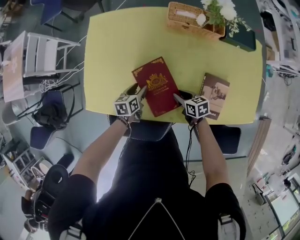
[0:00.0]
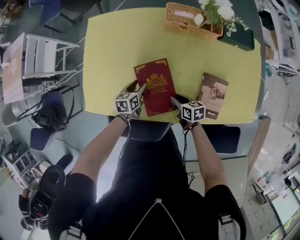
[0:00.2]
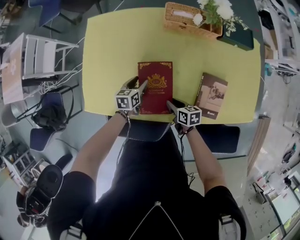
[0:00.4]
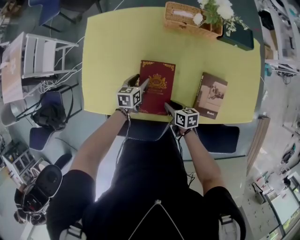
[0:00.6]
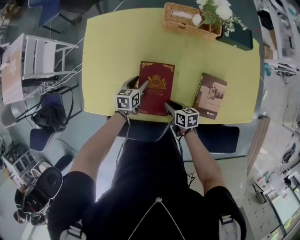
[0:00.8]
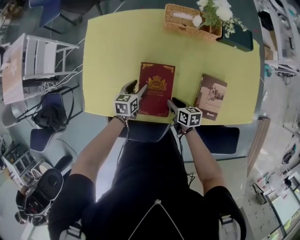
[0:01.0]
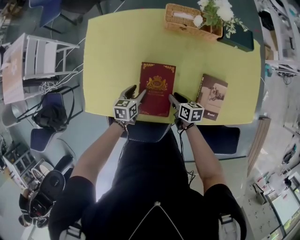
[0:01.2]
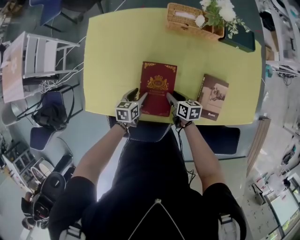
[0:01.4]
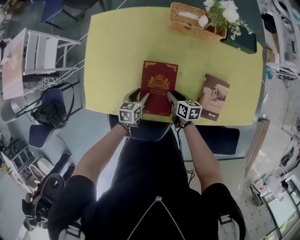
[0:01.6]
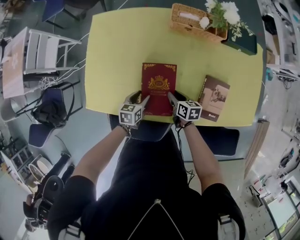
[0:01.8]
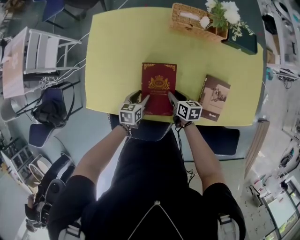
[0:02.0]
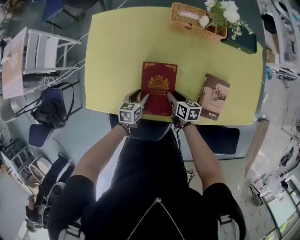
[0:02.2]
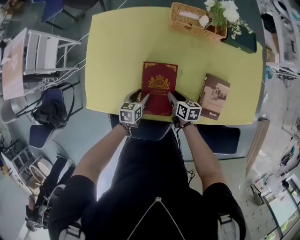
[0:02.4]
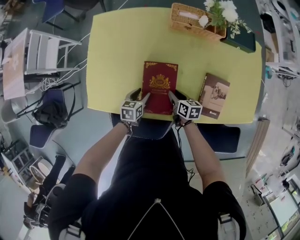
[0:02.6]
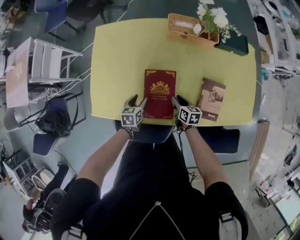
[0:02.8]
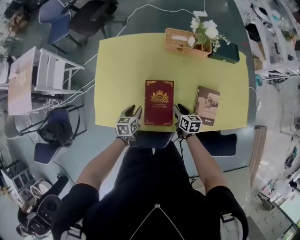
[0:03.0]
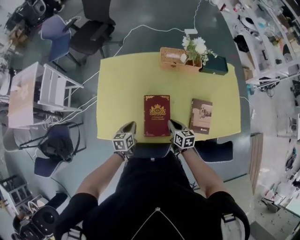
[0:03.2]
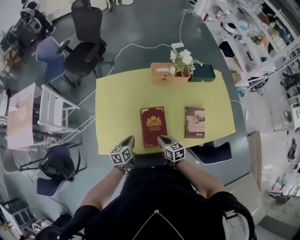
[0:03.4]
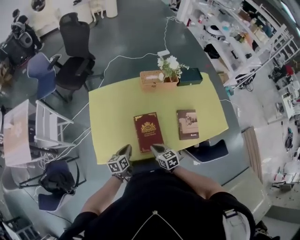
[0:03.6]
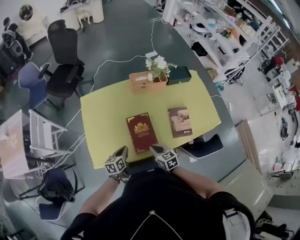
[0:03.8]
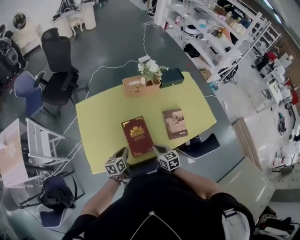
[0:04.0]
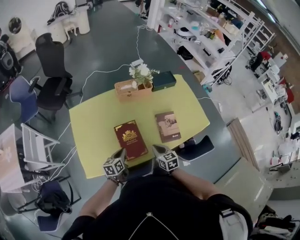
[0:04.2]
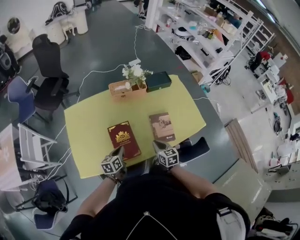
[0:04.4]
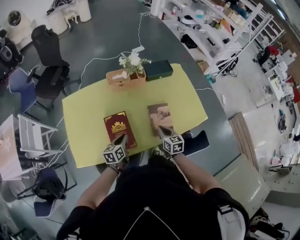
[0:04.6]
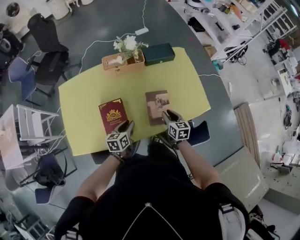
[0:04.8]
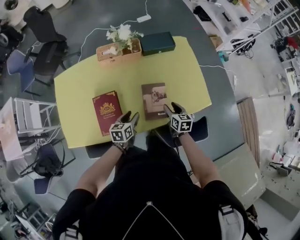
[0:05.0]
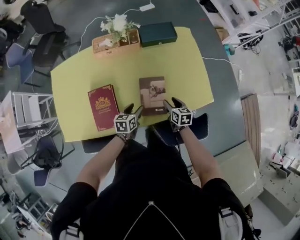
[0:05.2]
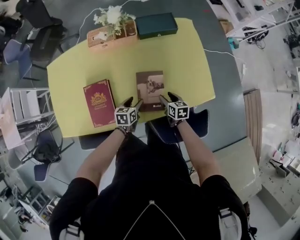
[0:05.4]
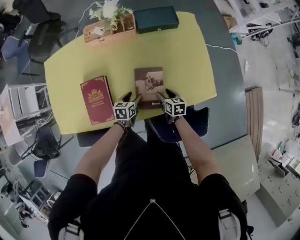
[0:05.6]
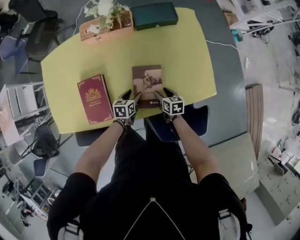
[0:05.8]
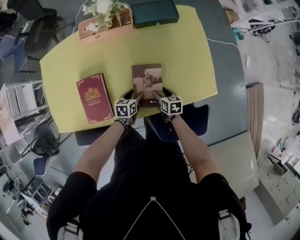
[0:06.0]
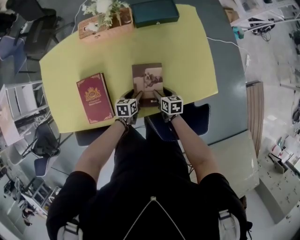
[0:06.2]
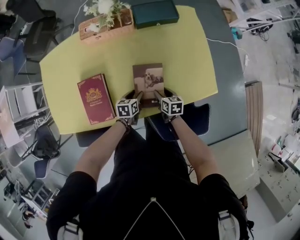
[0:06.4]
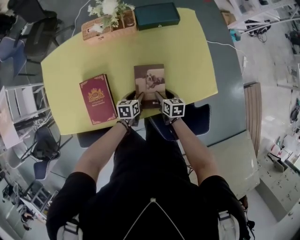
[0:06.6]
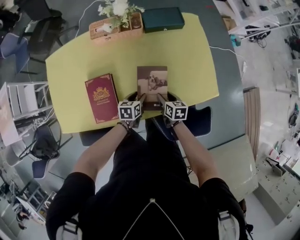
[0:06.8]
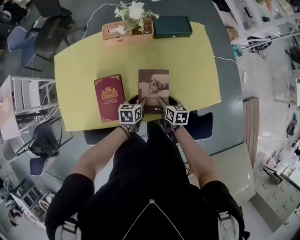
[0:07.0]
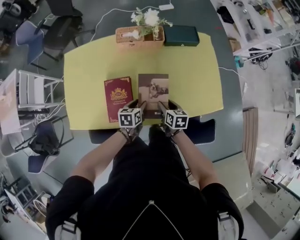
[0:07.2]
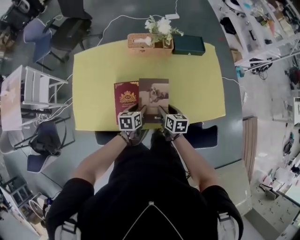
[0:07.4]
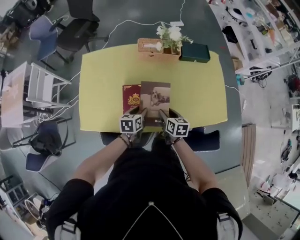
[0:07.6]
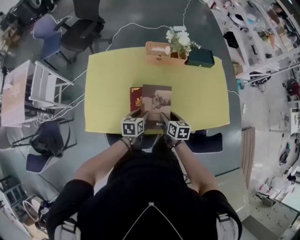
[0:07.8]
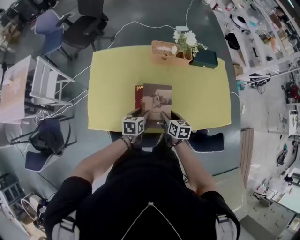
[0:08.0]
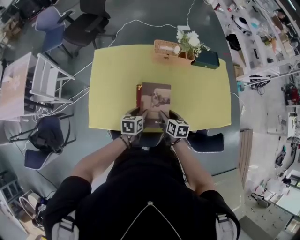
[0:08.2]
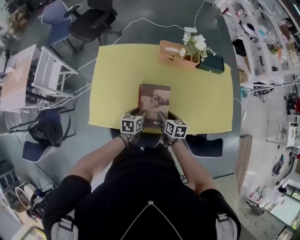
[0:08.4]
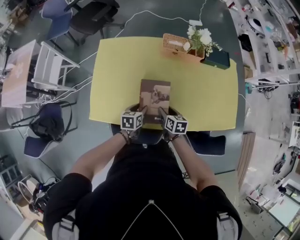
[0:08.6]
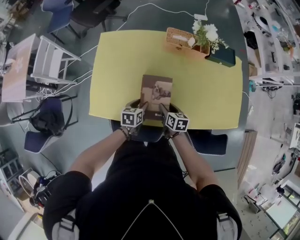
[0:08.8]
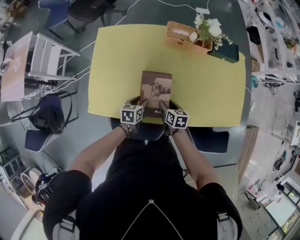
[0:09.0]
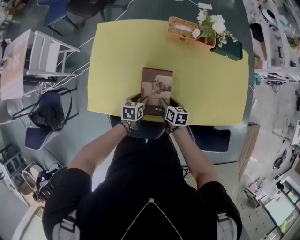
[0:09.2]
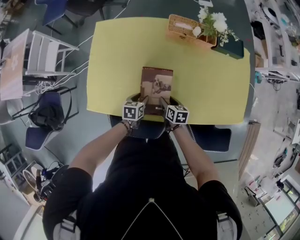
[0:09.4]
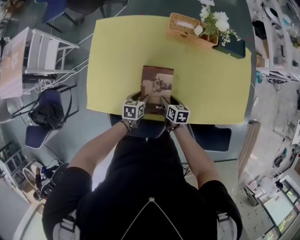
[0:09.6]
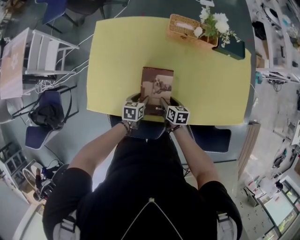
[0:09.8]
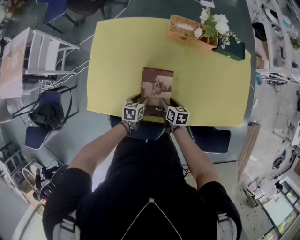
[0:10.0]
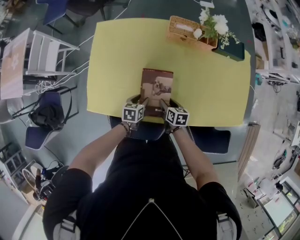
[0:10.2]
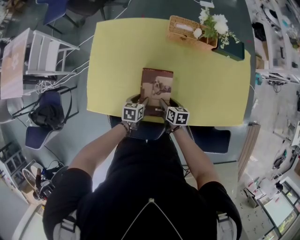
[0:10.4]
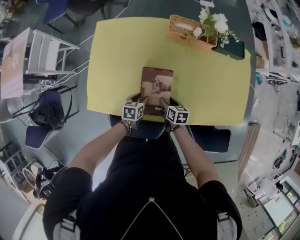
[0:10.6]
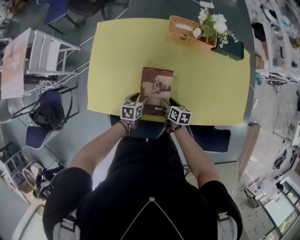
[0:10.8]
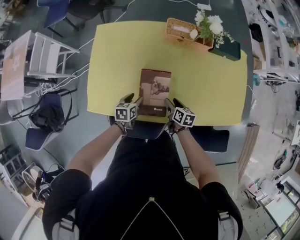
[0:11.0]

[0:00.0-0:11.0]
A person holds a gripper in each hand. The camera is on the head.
0:00.0 to 0:01.6: The grippers make only small movements.
0:01.6 to 0:03.2: The left gripper shifts approximately 15 cm upward and to the left, and closes. The right gripper goes about 10 cm upward, and closes its fingers.
0:03.2 to 0:04.8: Both grippers move to the right, roughly 25 cm. The left gripper opens, while the right gripper swivels about 20 degrees, and opens its fingers.
0:04.8 to 0:06.2: The left gripper is displaced downward and to the right by some 25 cm; the right gripper goes roughly 20 cm downward, turns by some 20 degrees, and opens its fingers.
0:06.2 to 0:07.8: The two grippers go about 30 cm to the left and upward.
0:07.8 to 0:09.4: The grippers both shift downward and to the left by roughly 15 cm.
0:09.4 to 0:11.0: The grippers make only small movements.

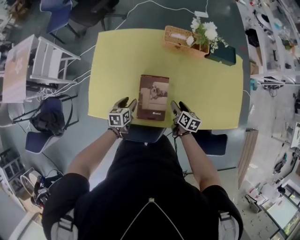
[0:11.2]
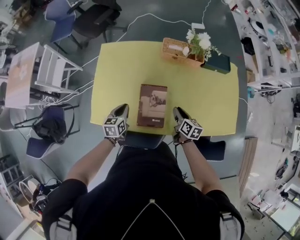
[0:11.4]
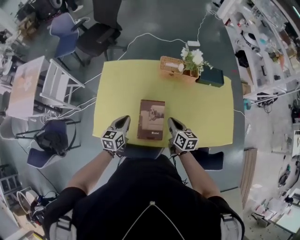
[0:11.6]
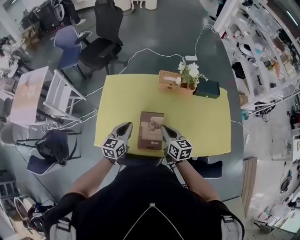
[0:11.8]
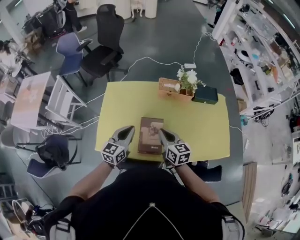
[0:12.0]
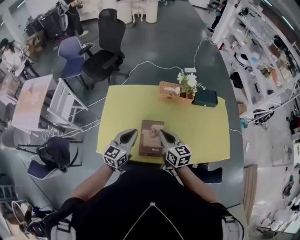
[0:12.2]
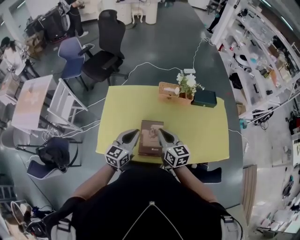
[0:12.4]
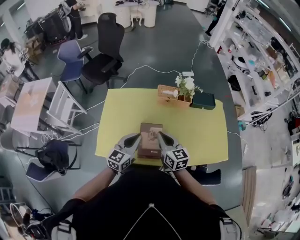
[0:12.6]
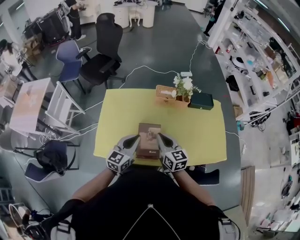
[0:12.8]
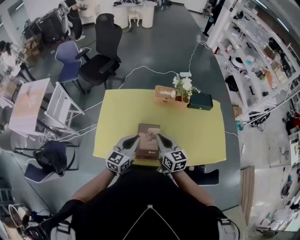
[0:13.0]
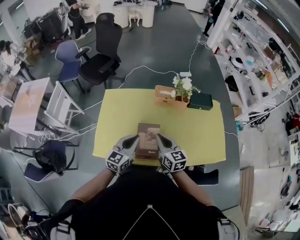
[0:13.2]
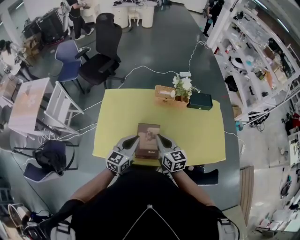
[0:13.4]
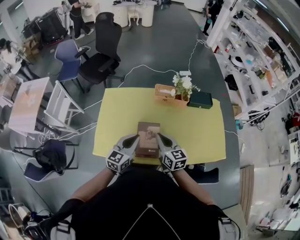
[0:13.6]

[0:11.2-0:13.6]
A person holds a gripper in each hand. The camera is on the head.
0:11.2 to 0:12.4: The two grippers go about 30 cm upward. The right gripper changes its angle by about 40 degrees, and closes. The left gripper points its fingers some 40 degrees further upward, and closes its fingers.
0:12.4 to 0:13.6: The grippers stay close to where they were, moving slightly.

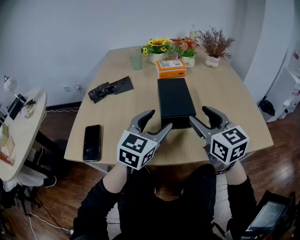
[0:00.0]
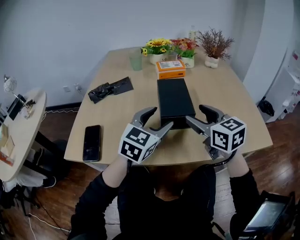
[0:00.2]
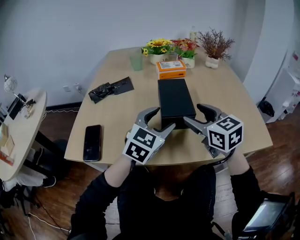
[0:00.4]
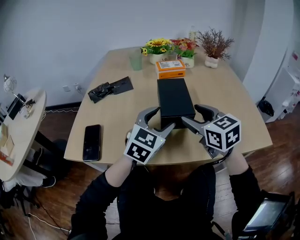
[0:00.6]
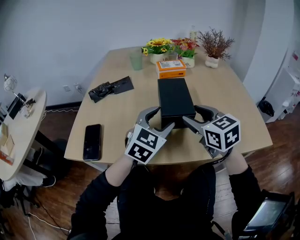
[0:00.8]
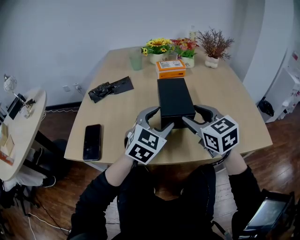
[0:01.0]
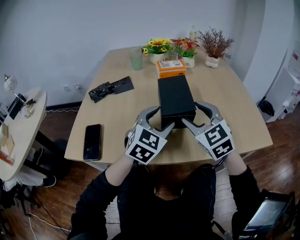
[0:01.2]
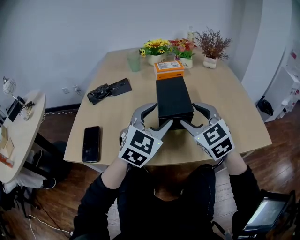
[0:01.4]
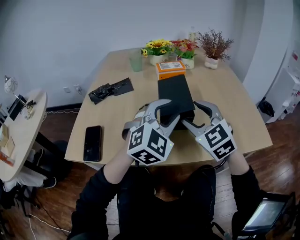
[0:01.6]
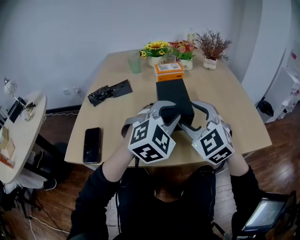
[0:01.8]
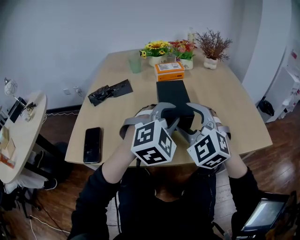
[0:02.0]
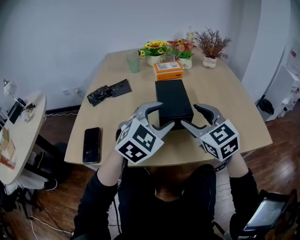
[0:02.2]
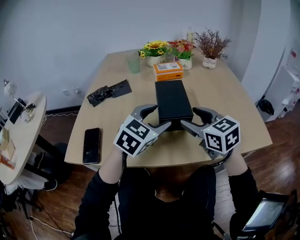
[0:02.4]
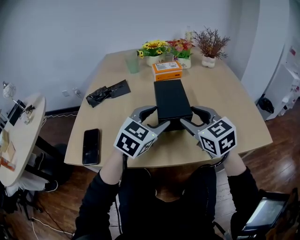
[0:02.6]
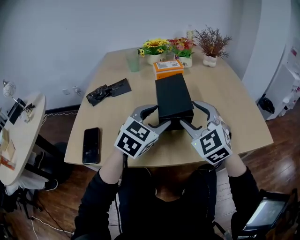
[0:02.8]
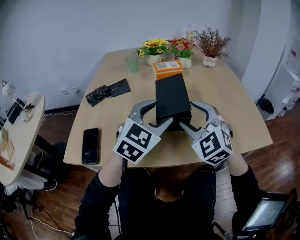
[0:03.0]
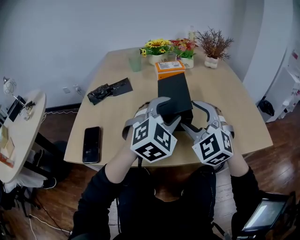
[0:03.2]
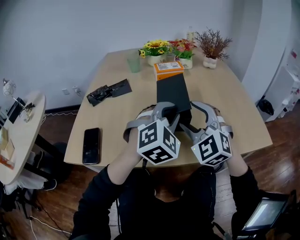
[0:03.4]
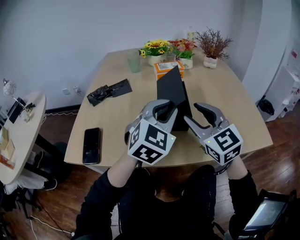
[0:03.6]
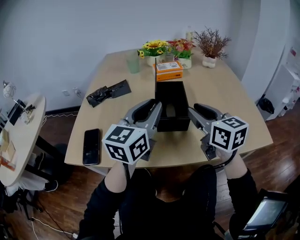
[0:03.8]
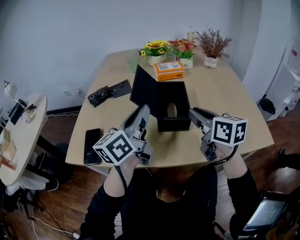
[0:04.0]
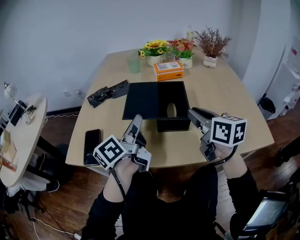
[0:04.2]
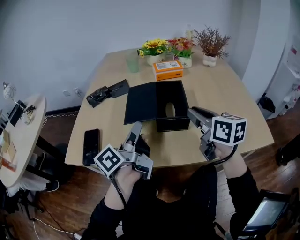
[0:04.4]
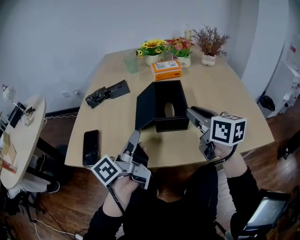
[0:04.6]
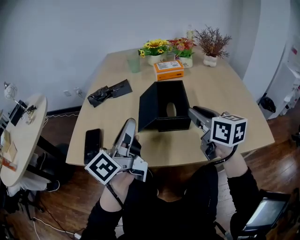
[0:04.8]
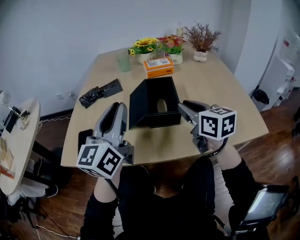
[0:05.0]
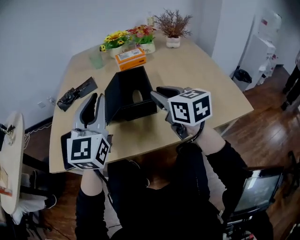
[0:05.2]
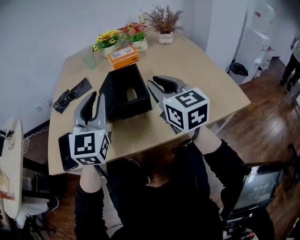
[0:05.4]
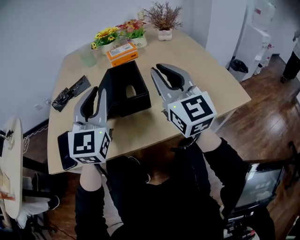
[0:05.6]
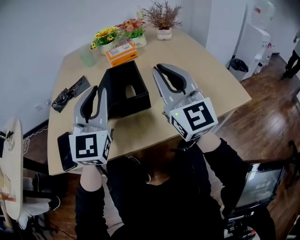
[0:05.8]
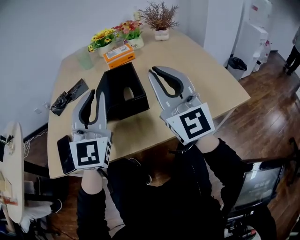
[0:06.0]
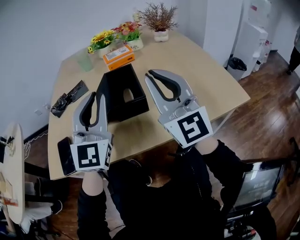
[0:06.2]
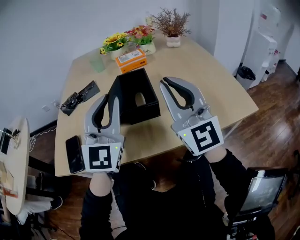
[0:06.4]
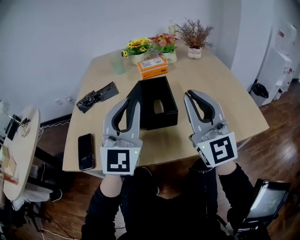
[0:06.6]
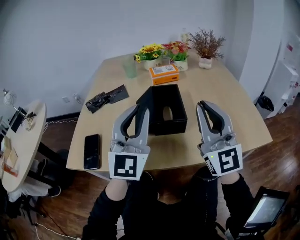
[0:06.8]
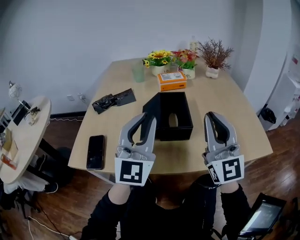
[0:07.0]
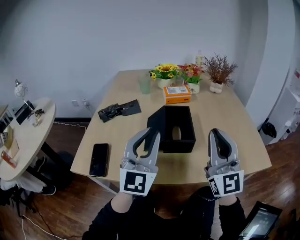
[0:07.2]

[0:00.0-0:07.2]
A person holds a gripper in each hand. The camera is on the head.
0:00.0 to 0:01.4: The right gripper turns by some 30 degrees.
0:01.4 to 0:02.8: The left gripper closes, then opens again.
0:02.8 to 0:04.4: The right gripper rolls clockwise, seen from behind, by some 60 degrees, and closes up, while the left gripper moves to the left, approximately 10 cm, rolls counterclockwise, seen from behind, by about 90 degrees, and closes up.
0:04.4 to 0:05.8: The left gripper is displaced upward and to the right by about 10 cm, and twists approximately 90 degrees clockwise, seen from behind; the right gripper goes some 10 cm upward, and tips its fingers upward by about 30 degrees.
0:05.8 to 0:07.2: The grippers make only small movements.

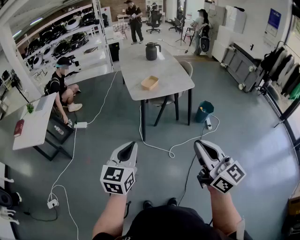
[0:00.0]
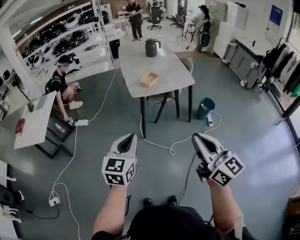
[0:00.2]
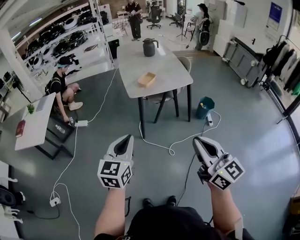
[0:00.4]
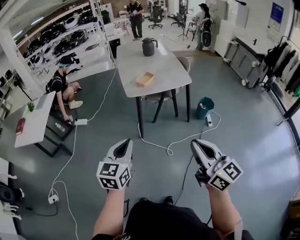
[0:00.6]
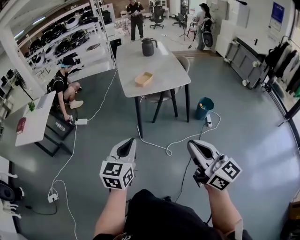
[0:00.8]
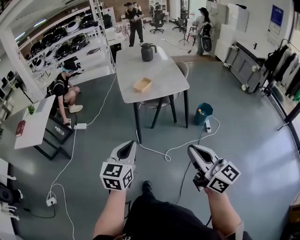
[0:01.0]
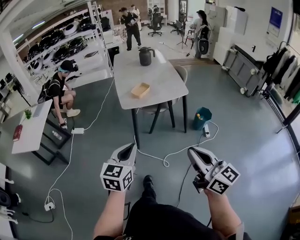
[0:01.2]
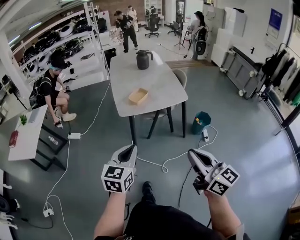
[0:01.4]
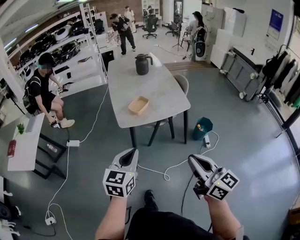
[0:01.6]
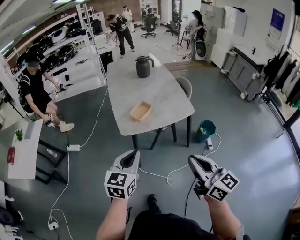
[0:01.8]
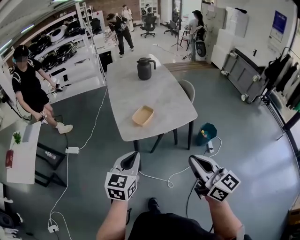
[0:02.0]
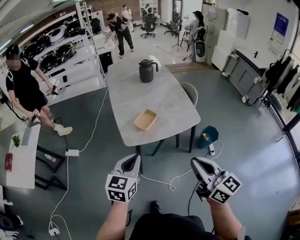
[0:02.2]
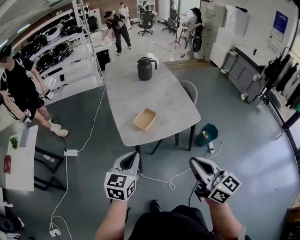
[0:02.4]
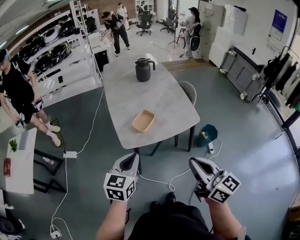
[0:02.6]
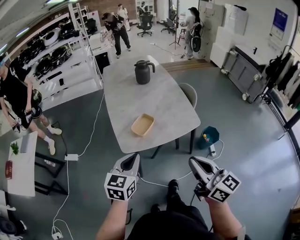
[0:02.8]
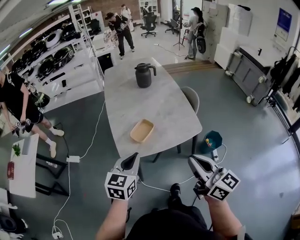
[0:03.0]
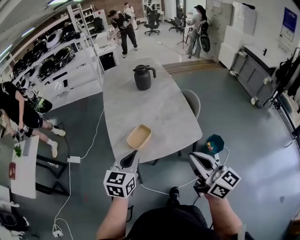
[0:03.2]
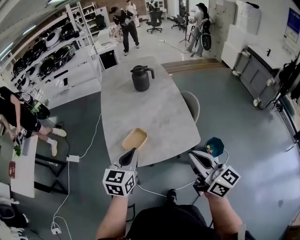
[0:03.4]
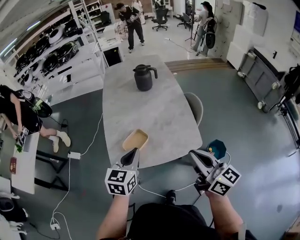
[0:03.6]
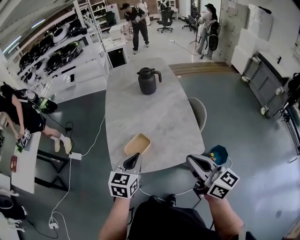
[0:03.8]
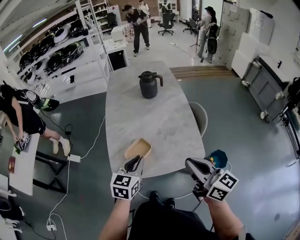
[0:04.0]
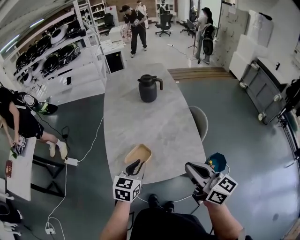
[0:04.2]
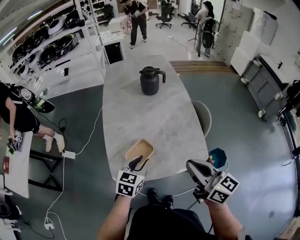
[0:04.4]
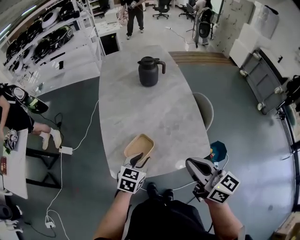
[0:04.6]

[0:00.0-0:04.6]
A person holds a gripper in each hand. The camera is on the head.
0:00.0 to 0:01.6: Both grippers travel together forward and to the right, roughly 25 cm.
0:01.6 to 0:03.0: Both grippers travel together forward, some 25 cm.
0:03.0 to 0:04.6: The left gripper heads forward, downward and to the right, covering about 25 cm, and opens up. Meanwhile the right gripper moves forward, approximately 20 cm.
